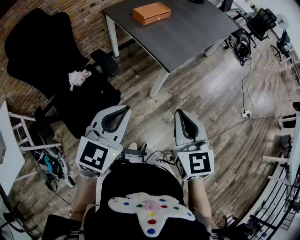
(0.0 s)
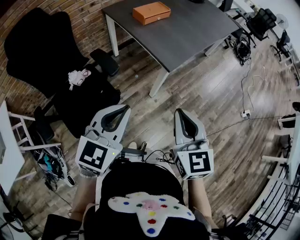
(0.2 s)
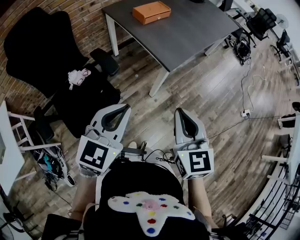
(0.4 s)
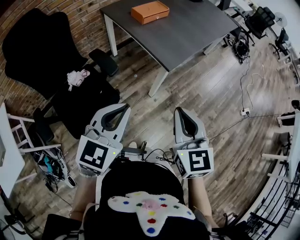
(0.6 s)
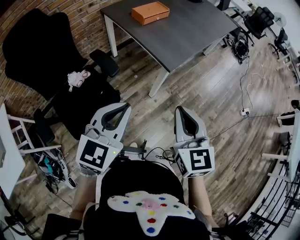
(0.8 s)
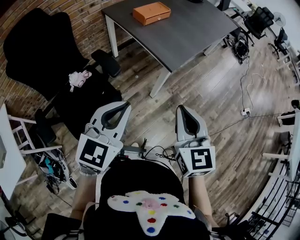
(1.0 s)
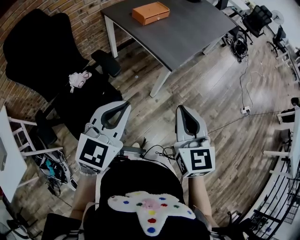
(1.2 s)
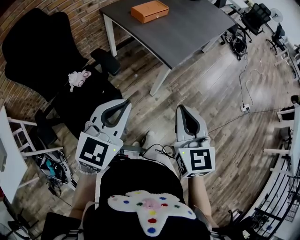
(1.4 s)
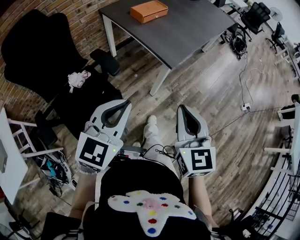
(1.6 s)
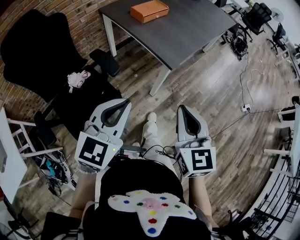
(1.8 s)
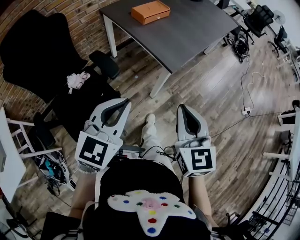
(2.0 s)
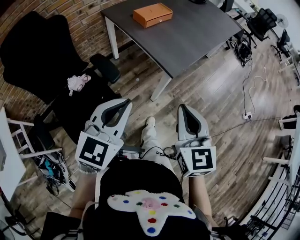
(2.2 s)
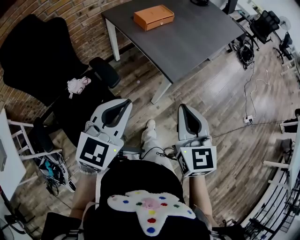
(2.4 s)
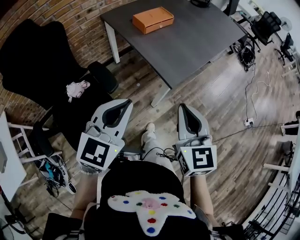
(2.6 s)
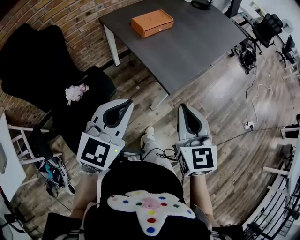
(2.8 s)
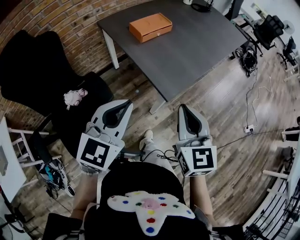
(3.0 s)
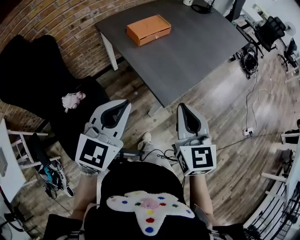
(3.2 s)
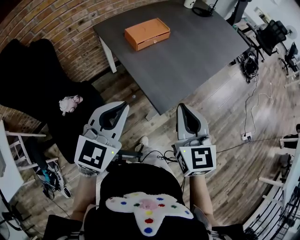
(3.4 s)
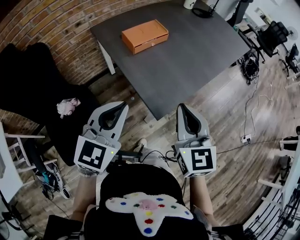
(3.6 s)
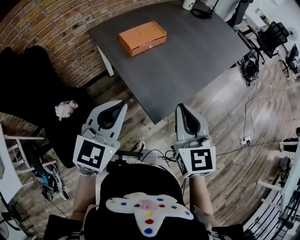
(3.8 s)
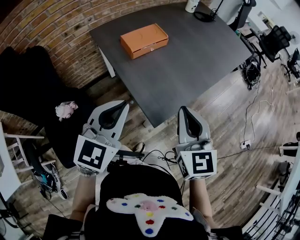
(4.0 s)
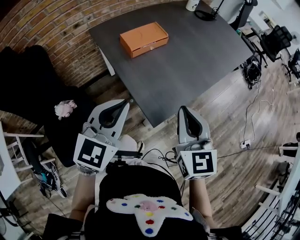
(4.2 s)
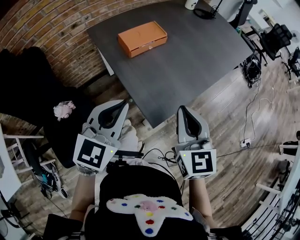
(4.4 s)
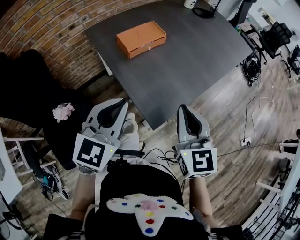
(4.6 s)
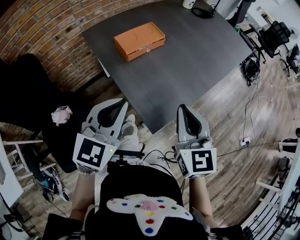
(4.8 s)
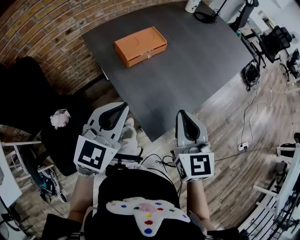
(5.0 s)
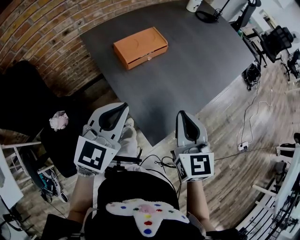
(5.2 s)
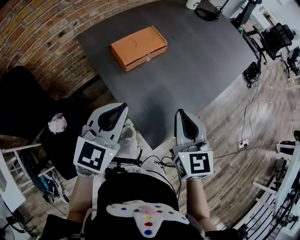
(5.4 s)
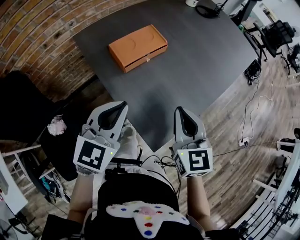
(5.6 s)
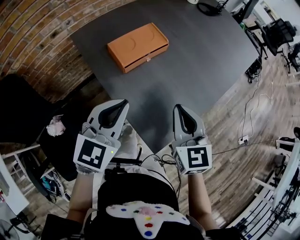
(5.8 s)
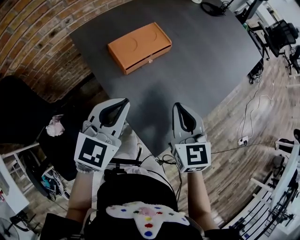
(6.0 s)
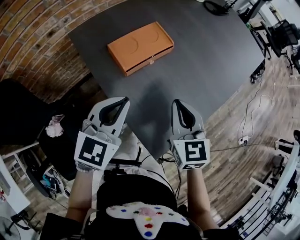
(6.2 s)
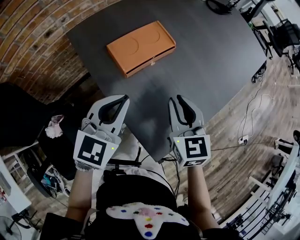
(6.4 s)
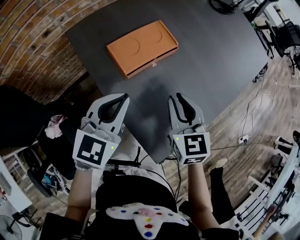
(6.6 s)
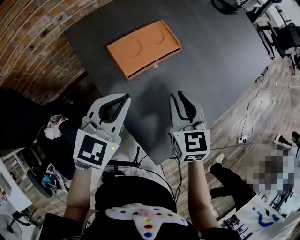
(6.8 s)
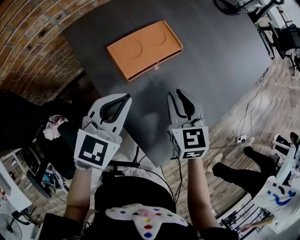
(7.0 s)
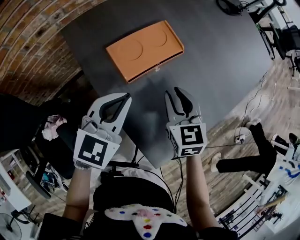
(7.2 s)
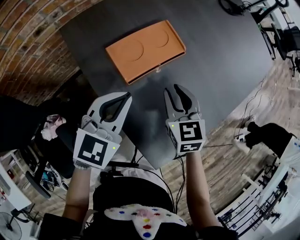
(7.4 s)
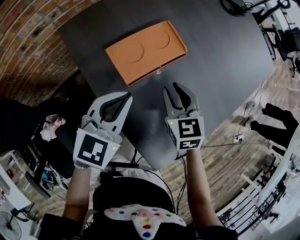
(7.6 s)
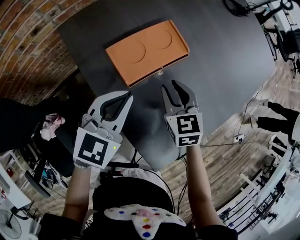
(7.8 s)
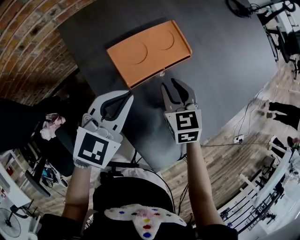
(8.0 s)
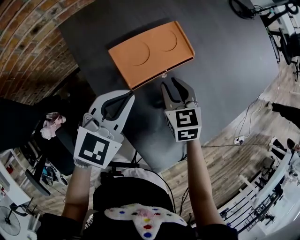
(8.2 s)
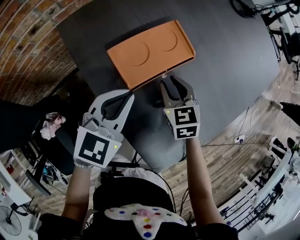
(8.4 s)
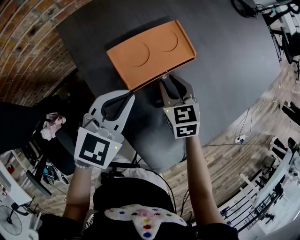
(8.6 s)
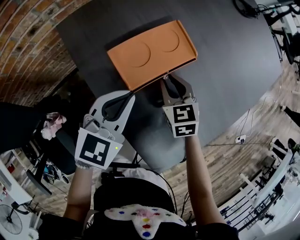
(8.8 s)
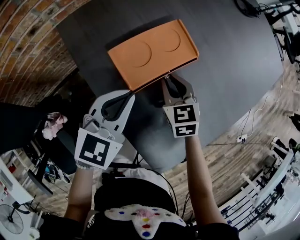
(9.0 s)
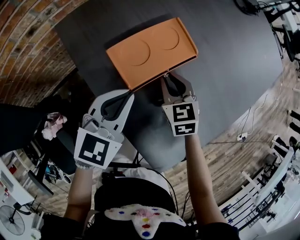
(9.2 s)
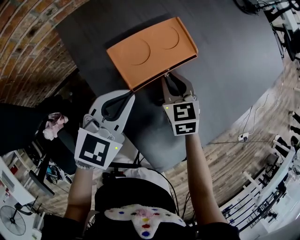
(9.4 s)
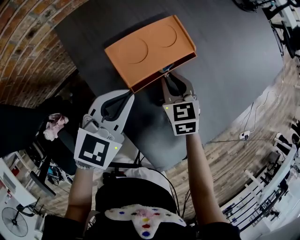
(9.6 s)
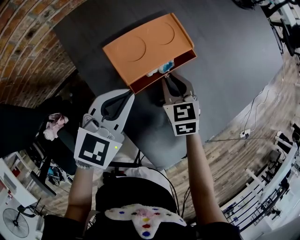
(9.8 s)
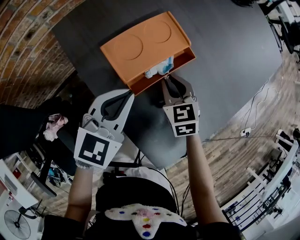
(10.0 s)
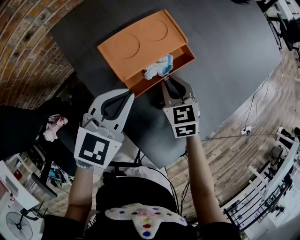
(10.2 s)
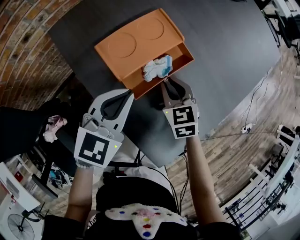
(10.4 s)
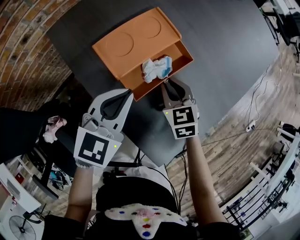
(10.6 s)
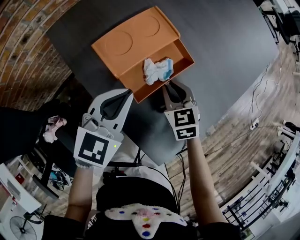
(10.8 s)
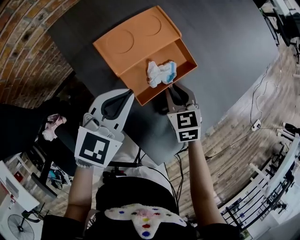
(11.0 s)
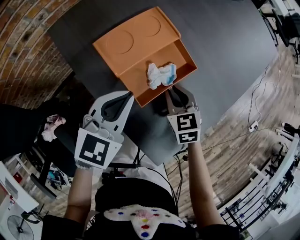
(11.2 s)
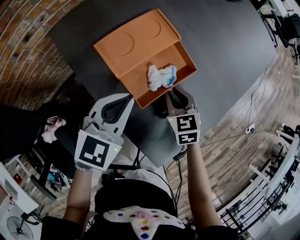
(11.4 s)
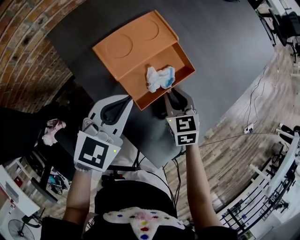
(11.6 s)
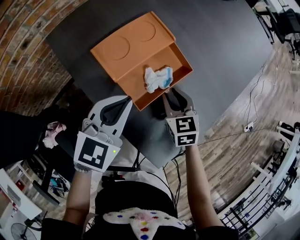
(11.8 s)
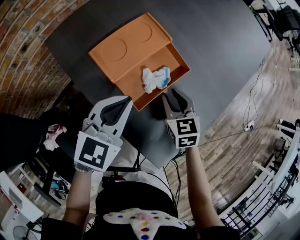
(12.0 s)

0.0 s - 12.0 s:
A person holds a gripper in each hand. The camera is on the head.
0.0 s - 1.6 s: The grippers stay close to where they were, moving slightly.
1.6 s - 3.0 s: Both grippers move forward, about 20 cm.
3.0 s - 4.4 s: Both grippers move forward, roughly 15 cm.
4.4 s - 6.0 s: The left gripper goes about 20 cm forward. The right gripper goes about 25 cm forward and downward.
6.0 s - 7.6 s: The right gripper heads forward, downward and to the left, covering roughly 20 cm, and opens its fingers. Meanwhile the left gripper moves forward and downward, roughly 15 cm.
7.6 s - 9.0 s: The right gripper travels downward by roughly 5 cm.
9.0 s - 10.4 s: The right gripper moves some 5 cm.
10.4 s - 12.0 s: The right gripper ends up some 5 cm from where it was.

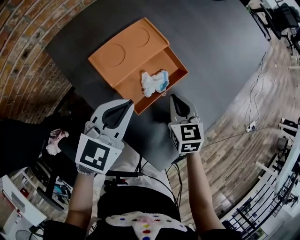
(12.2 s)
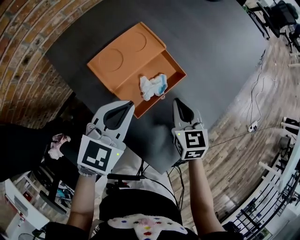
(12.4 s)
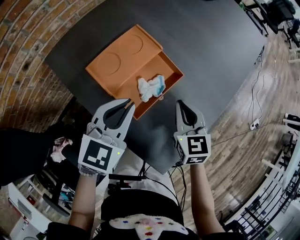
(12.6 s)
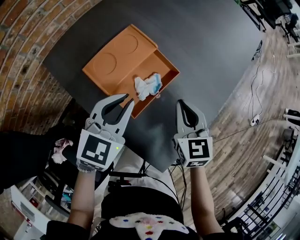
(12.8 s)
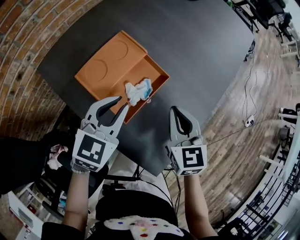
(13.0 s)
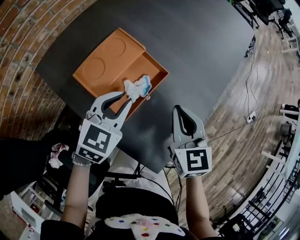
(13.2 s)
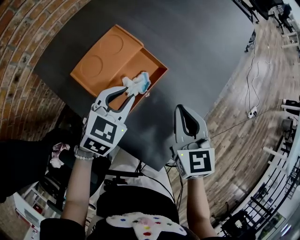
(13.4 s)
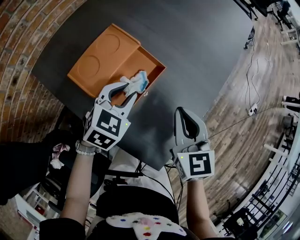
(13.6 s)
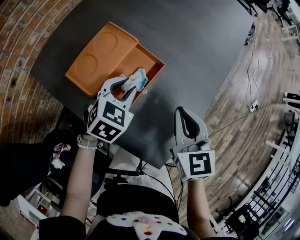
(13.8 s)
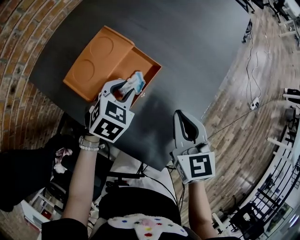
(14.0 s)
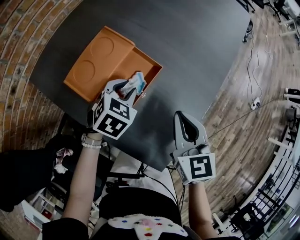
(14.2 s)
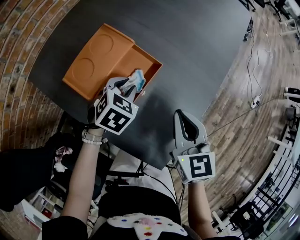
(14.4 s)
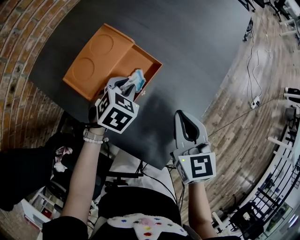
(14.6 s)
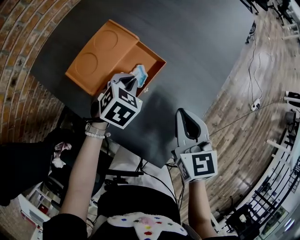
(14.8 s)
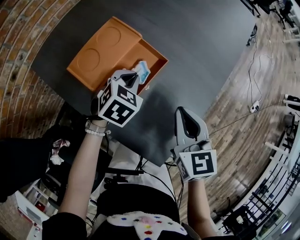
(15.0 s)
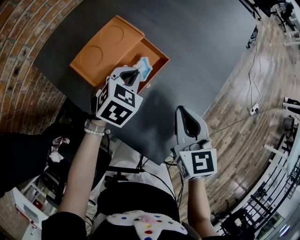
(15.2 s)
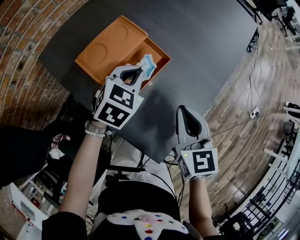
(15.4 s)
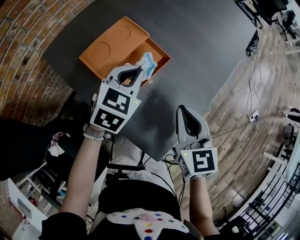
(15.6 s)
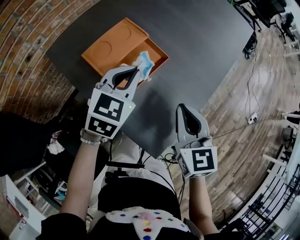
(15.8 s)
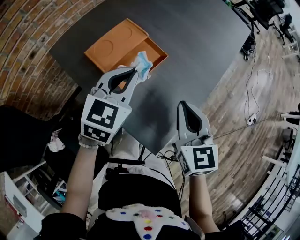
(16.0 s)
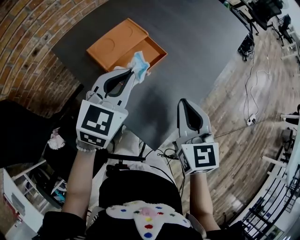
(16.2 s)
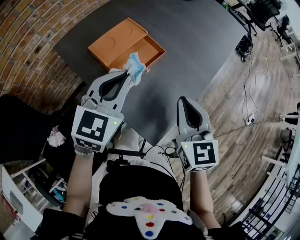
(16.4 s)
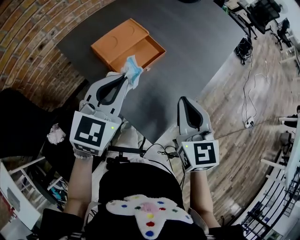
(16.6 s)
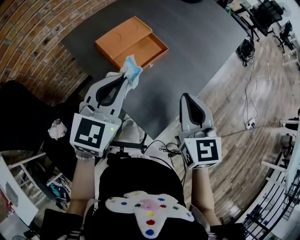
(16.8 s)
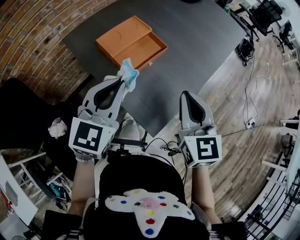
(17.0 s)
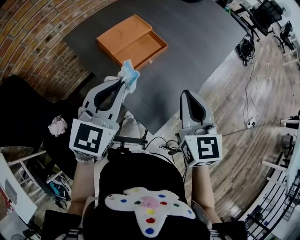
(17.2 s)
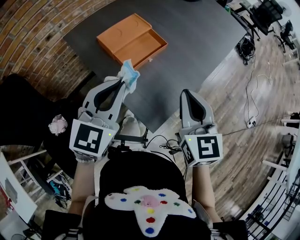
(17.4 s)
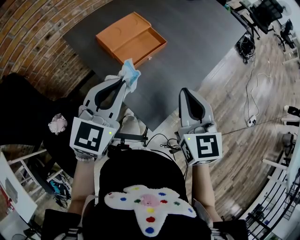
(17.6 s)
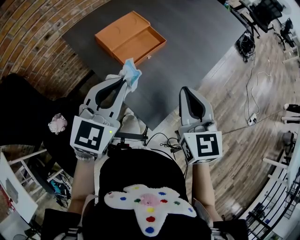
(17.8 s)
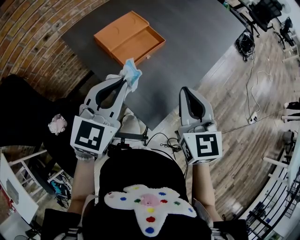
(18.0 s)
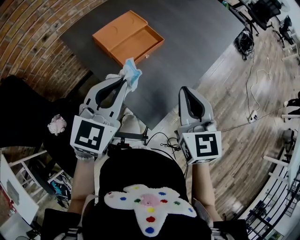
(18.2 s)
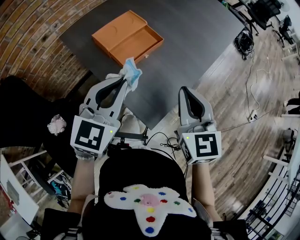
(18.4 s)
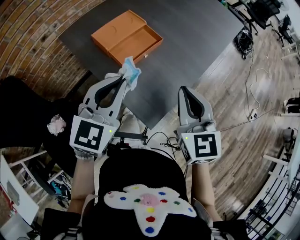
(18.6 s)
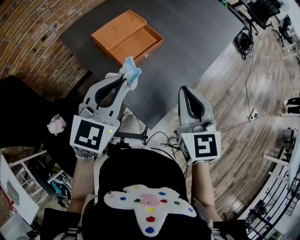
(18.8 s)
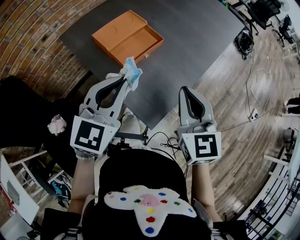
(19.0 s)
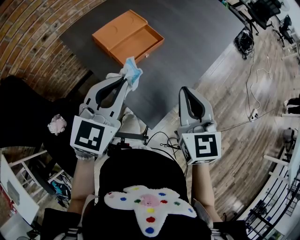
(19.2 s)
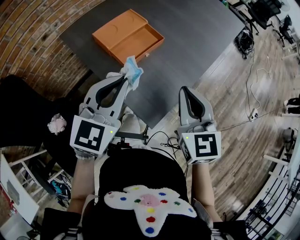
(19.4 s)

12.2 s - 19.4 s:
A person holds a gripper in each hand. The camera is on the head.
12.2 s - 13.6 s: The right gripper goes roughly 15 cm upward and to the right. Meanwhile the left gripper goes about 10 cm forward, downward and to the right, rotates roughly 20 degrees, and opens up.
13.6 s - 15.0 s: The left gripper heads downward, covering approximately 5 cm, and closes up.
15.0 s - 16.6 s: The right gripper shifts about 15 cm backward and upward. The left gripper is displaced upward and backward by about 30 cm, and tilts its fingers about 40 degrees upward.
16.6 s - 18.0 s: The left gripper moves backward, about 10 cm.
18.0 s - 19.4 s: Neither gripper changes place.

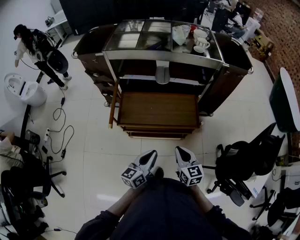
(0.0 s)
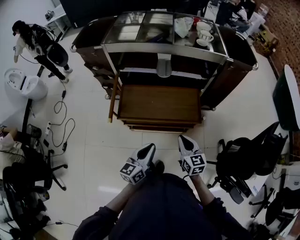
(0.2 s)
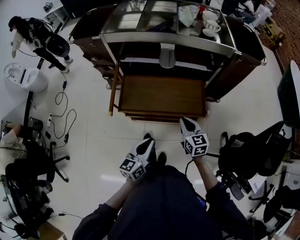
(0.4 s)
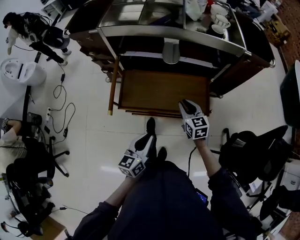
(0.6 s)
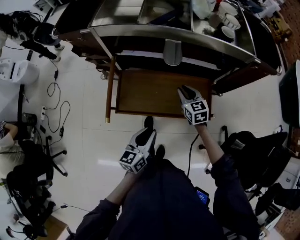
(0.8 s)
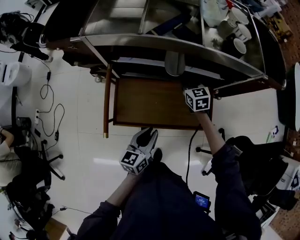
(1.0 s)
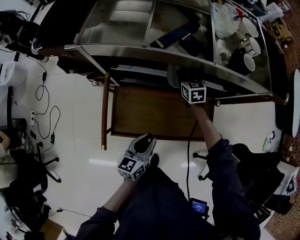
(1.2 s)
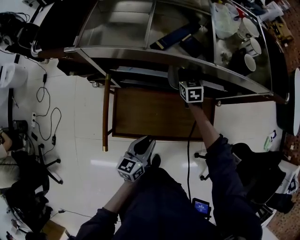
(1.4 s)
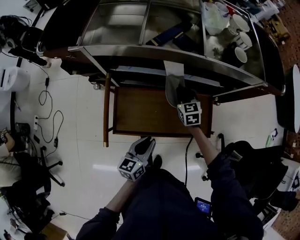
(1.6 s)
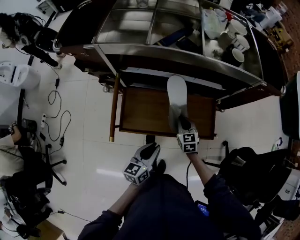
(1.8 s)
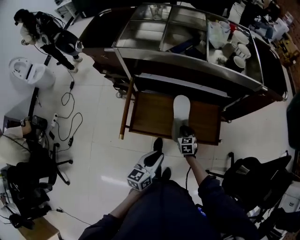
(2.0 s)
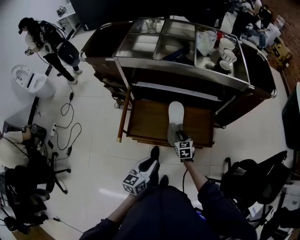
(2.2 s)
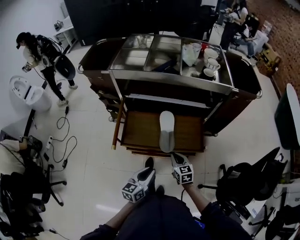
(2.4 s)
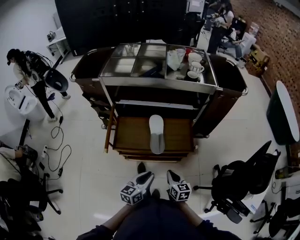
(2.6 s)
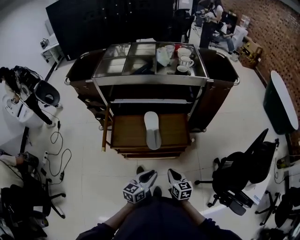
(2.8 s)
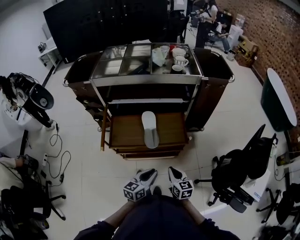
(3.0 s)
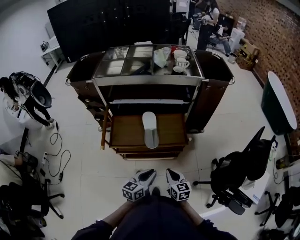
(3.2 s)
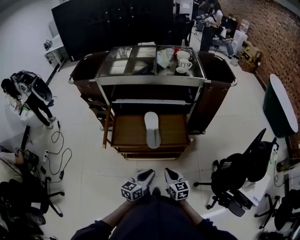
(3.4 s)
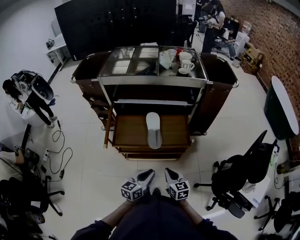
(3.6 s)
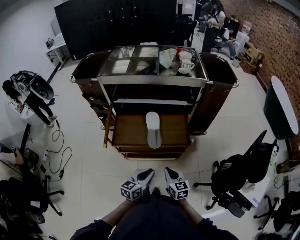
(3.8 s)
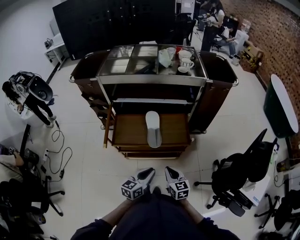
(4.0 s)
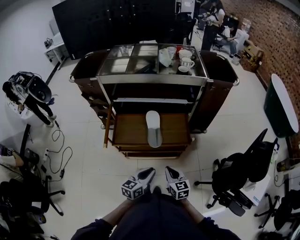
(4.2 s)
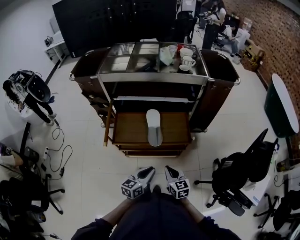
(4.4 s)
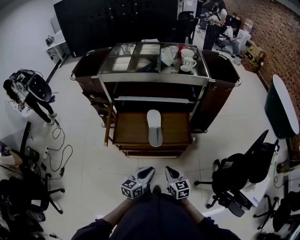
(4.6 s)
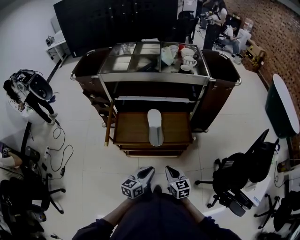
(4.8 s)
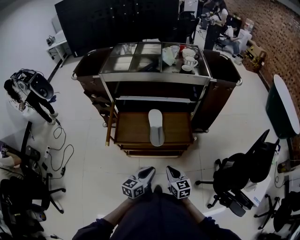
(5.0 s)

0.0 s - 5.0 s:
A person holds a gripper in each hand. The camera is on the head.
0.0 s - 1.6 s: The right gripper goes approximately 50 cm forward, swivels roughly 20 degrees, and opens, then closes once more. The left gripper is displaced forward by approximately 25 cm.
1.6 s - 3.4 s: The left gripper shifts some 30 cm backward and to the right, while the right gripper is displaced backward by about 50 cm, and changes its angle by approximately 20 degrees.
3.4 s - 5.0 s: The grippers make only small movements.
